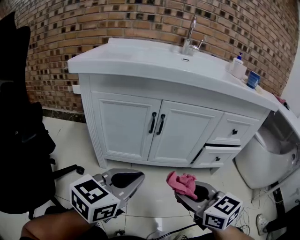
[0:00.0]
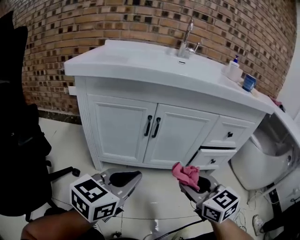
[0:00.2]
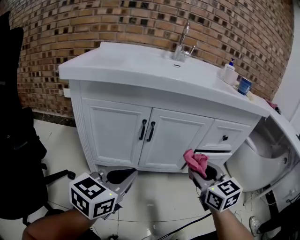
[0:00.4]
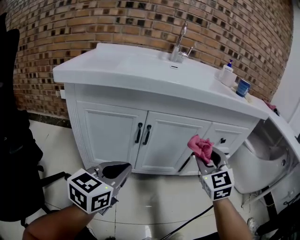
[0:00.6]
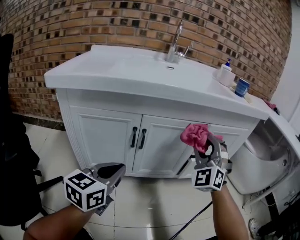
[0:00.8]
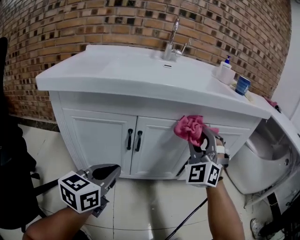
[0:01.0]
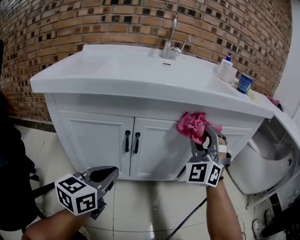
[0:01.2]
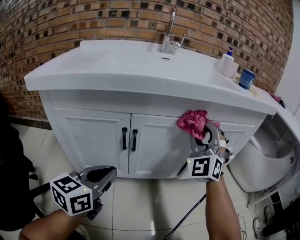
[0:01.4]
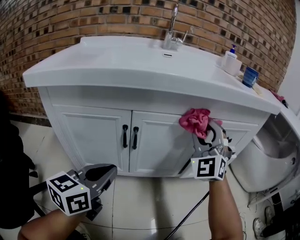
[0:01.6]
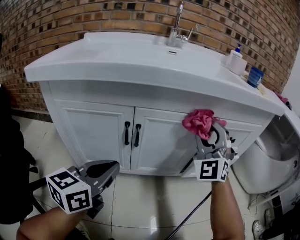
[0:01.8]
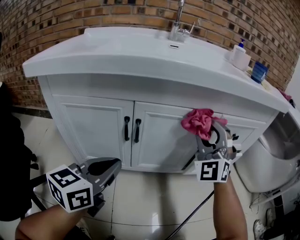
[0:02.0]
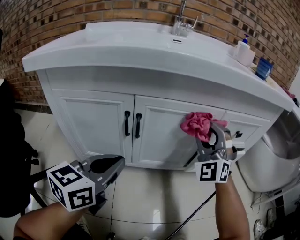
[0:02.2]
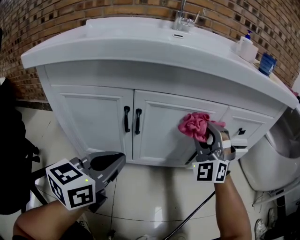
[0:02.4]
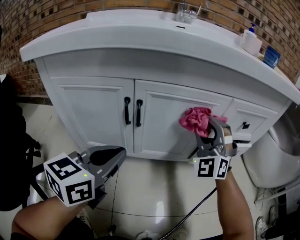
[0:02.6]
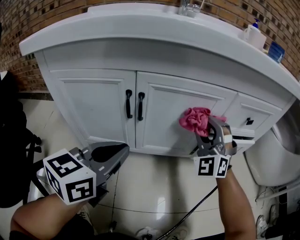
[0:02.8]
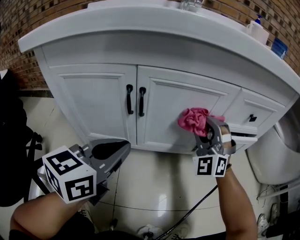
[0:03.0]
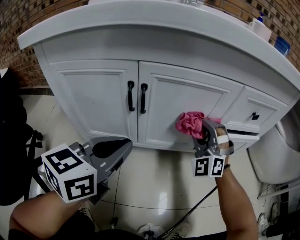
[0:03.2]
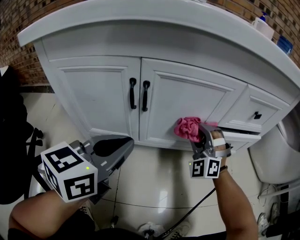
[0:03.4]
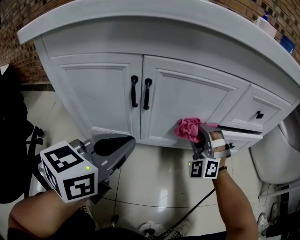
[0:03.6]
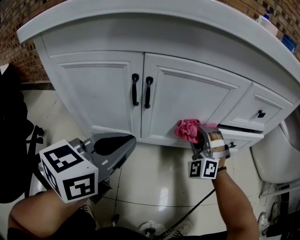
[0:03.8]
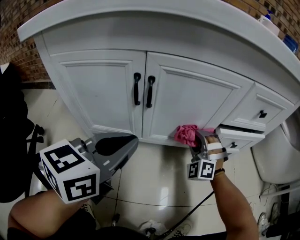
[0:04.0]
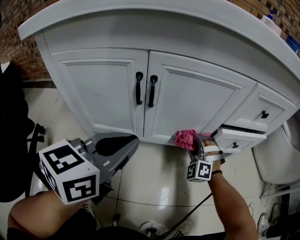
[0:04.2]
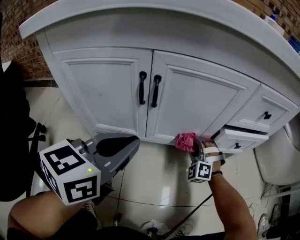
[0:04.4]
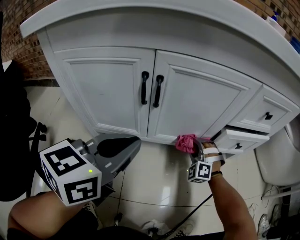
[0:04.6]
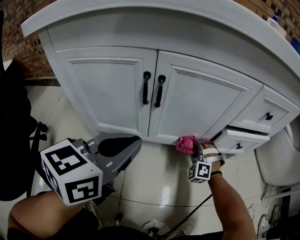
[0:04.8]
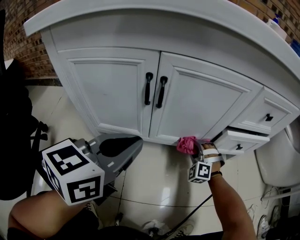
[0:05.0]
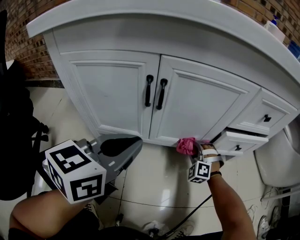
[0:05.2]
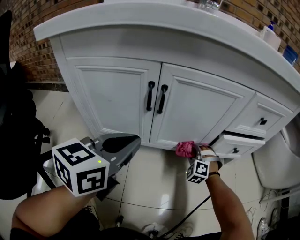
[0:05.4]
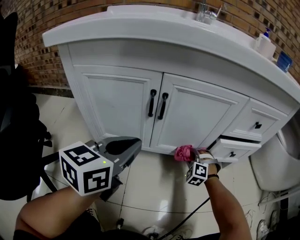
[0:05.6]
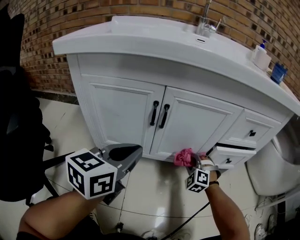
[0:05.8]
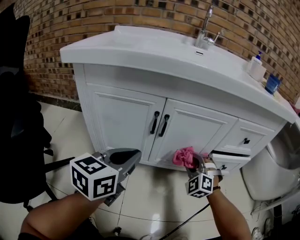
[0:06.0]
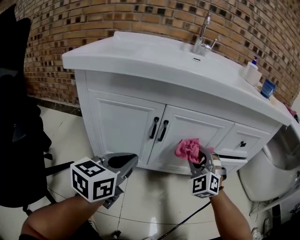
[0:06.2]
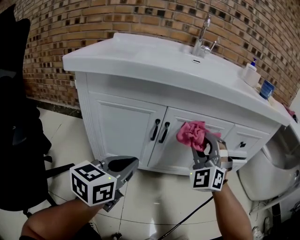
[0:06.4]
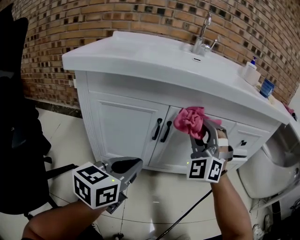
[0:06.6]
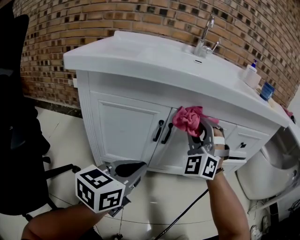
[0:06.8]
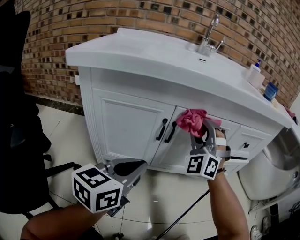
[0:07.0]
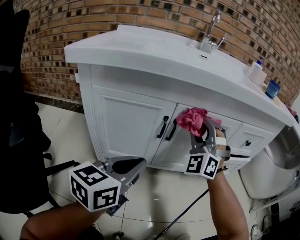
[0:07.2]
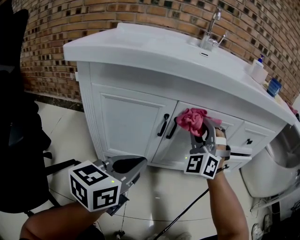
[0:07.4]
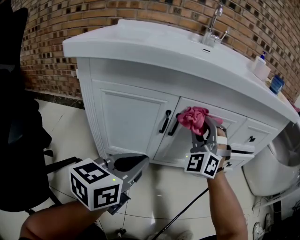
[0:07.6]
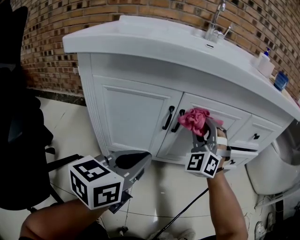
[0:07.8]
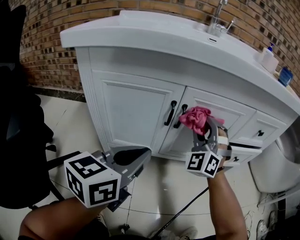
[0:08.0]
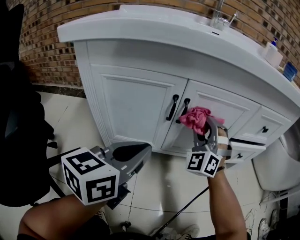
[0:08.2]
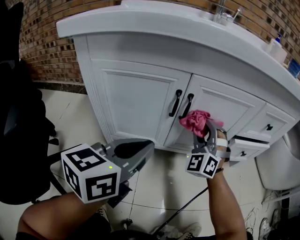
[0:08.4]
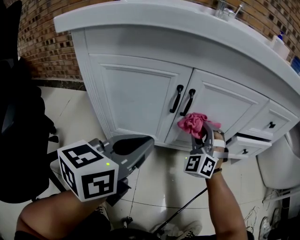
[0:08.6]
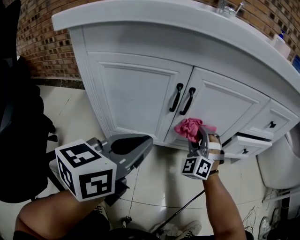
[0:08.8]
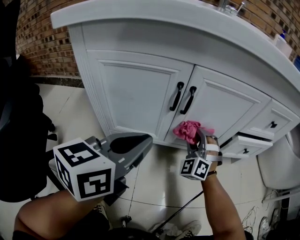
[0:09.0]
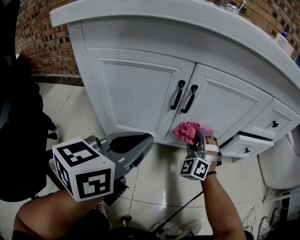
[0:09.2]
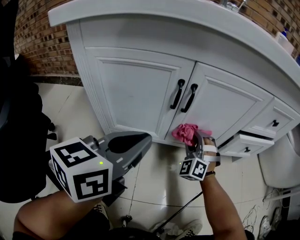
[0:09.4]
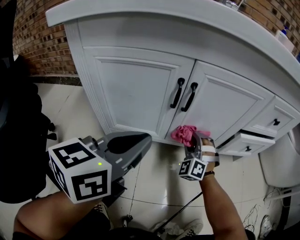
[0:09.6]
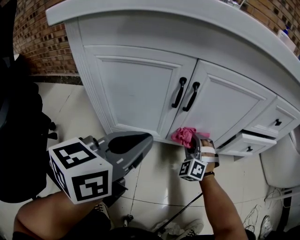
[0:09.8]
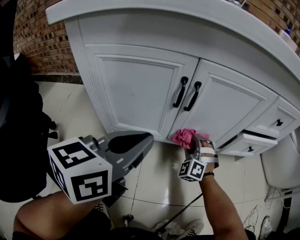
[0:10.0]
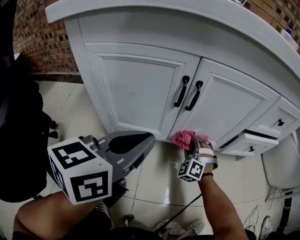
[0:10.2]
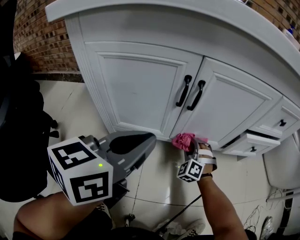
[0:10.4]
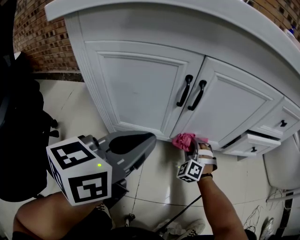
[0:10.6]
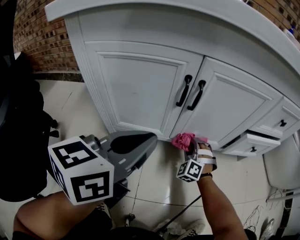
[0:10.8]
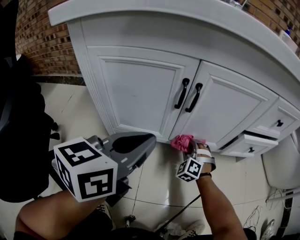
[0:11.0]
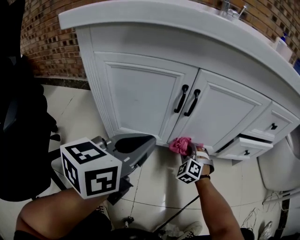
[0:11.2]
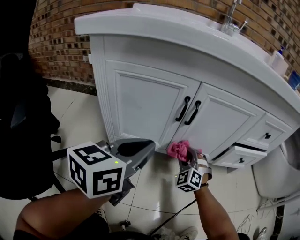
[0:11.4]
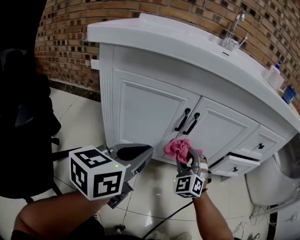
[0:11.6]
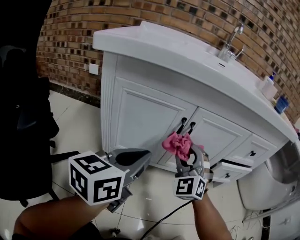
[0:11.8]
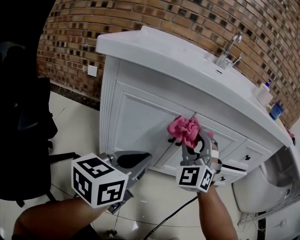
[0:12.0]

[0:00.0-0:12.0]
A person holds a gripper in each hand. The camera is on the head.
0:00.0 to 0:01.6: The left gripper travels forward by some 15 cm. The right gripper travels forward by about 30 cm, and rotates around the line of its fingers by some 60 degrees, counterclockwise from behind.
0:01.6 to 0:03.0: The right gripper goes about 15 cm downward.
0:03.0 to 0:04.4: The right gripper travels downward by approximately 20 cm, and swivels some 30 degrees.
0:04.4 to 0:06.0: The right gripper is displaced upward by roughly 15 cm. The left gripper ends up approximately 5 cm from where it was.
0:06.0 to 0:07.6: The right gripper moves upward and to the left, some 20 cm, and swivels some 30 degrees.
0:07.6 to 0:09.0: The right gripper travels downward by approximately 20 cm.
0:09.0 to 0:10.4: The right gripper is displaced downward by some 15 cm.
0:10.4 to 0:12.0: The right gripper travels upward by some 35 cm, and tilts its fingers approximately 30 degrees upward; the left gripper shifts by approximately 5 cm.

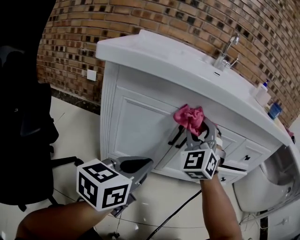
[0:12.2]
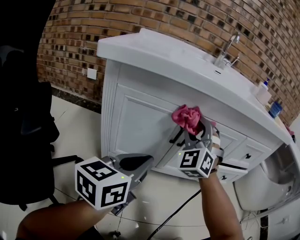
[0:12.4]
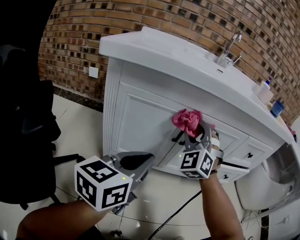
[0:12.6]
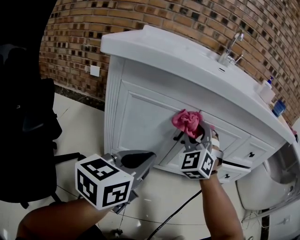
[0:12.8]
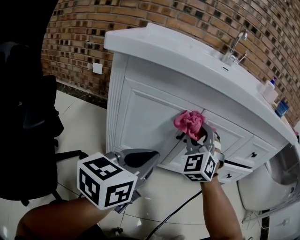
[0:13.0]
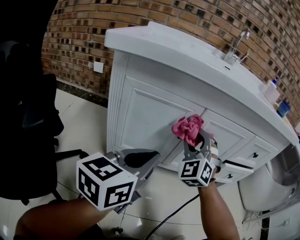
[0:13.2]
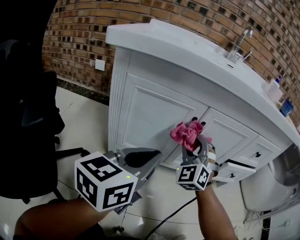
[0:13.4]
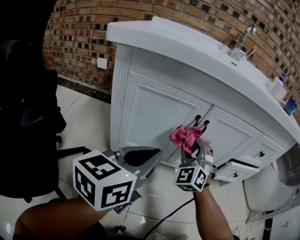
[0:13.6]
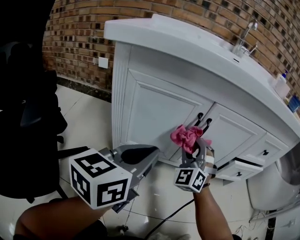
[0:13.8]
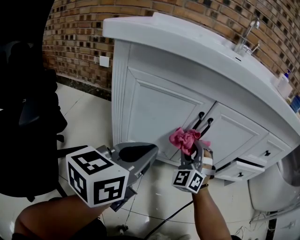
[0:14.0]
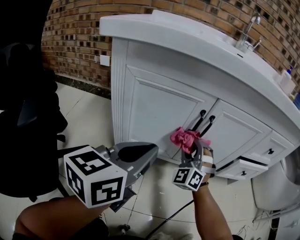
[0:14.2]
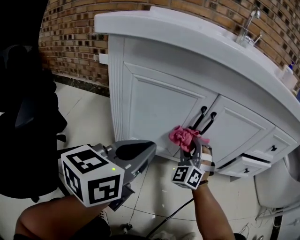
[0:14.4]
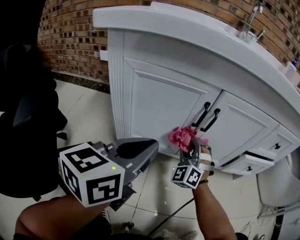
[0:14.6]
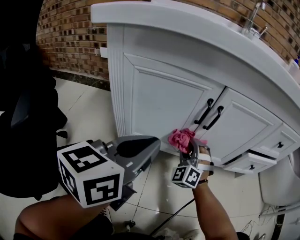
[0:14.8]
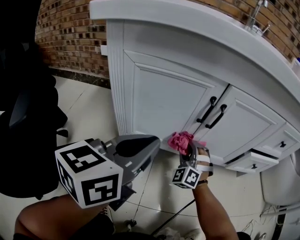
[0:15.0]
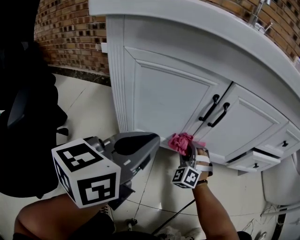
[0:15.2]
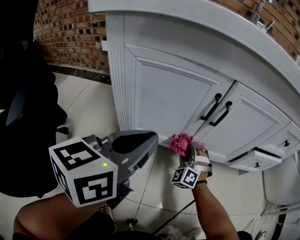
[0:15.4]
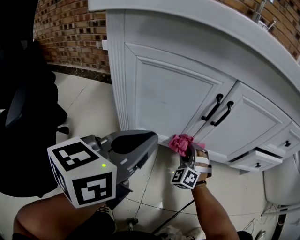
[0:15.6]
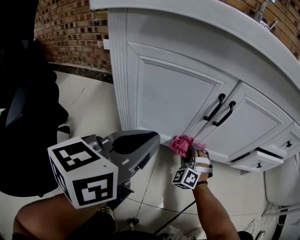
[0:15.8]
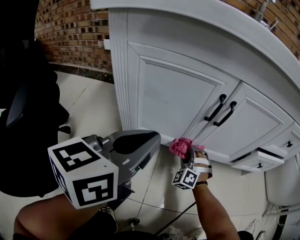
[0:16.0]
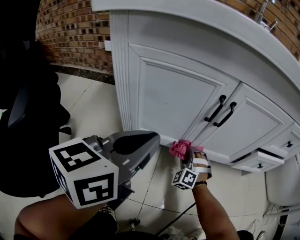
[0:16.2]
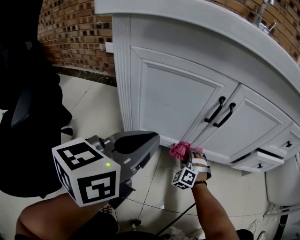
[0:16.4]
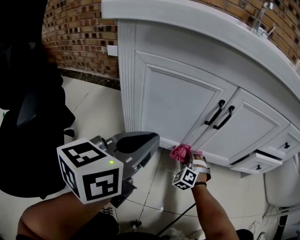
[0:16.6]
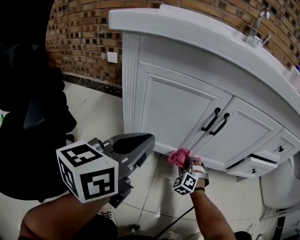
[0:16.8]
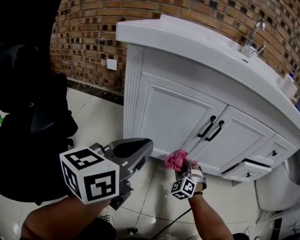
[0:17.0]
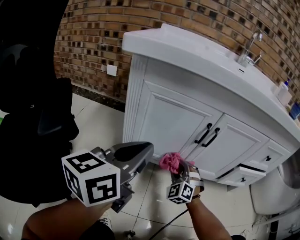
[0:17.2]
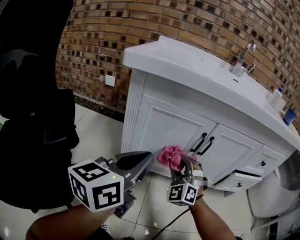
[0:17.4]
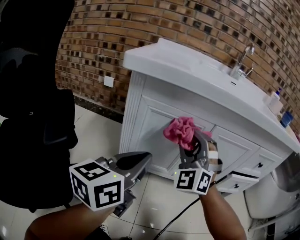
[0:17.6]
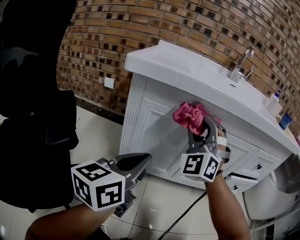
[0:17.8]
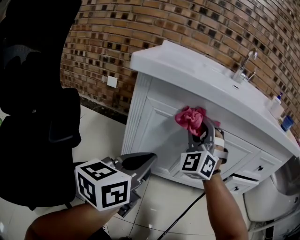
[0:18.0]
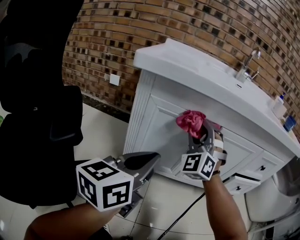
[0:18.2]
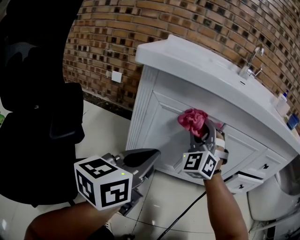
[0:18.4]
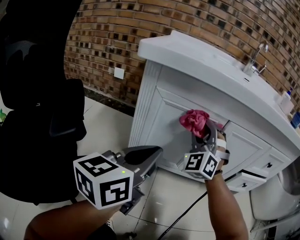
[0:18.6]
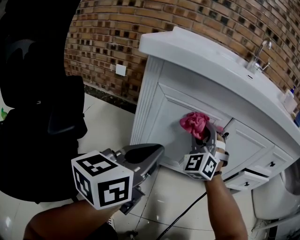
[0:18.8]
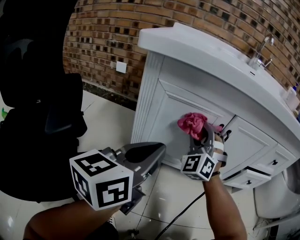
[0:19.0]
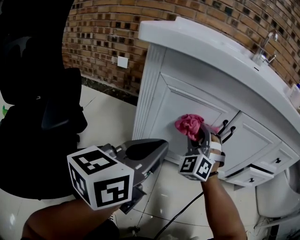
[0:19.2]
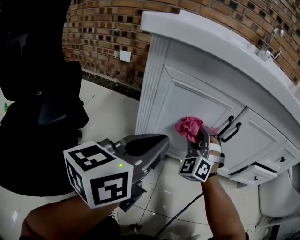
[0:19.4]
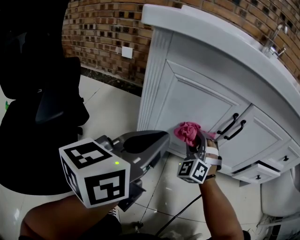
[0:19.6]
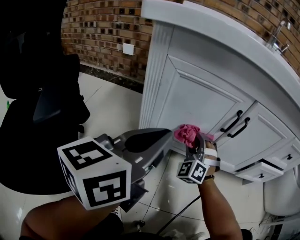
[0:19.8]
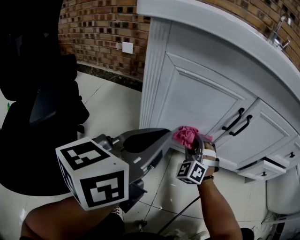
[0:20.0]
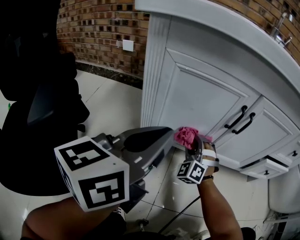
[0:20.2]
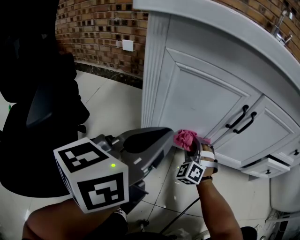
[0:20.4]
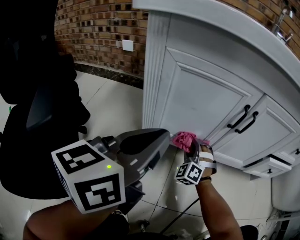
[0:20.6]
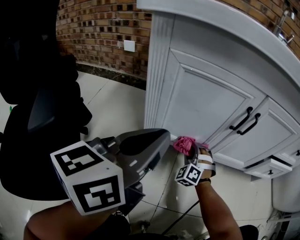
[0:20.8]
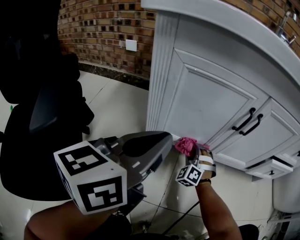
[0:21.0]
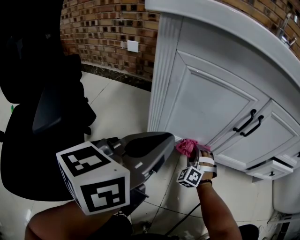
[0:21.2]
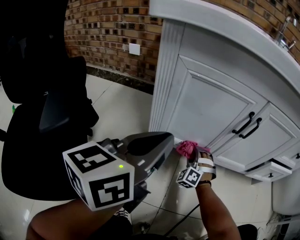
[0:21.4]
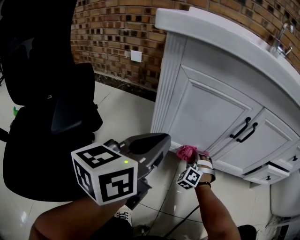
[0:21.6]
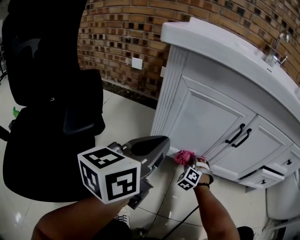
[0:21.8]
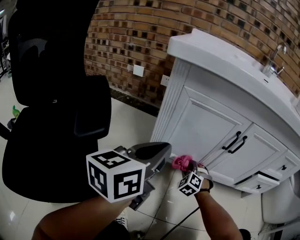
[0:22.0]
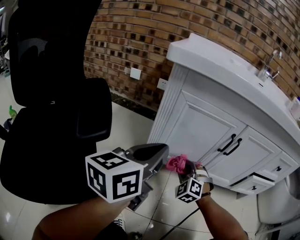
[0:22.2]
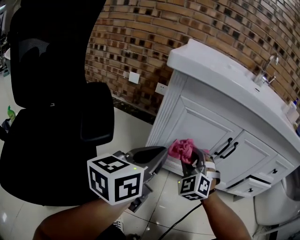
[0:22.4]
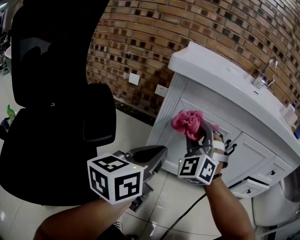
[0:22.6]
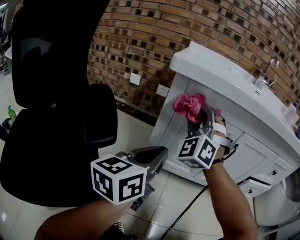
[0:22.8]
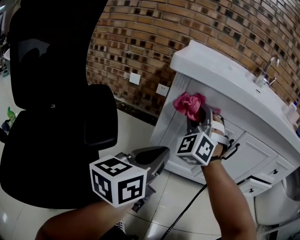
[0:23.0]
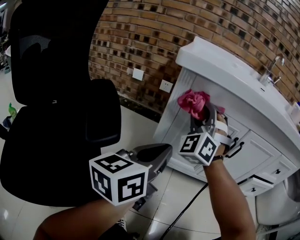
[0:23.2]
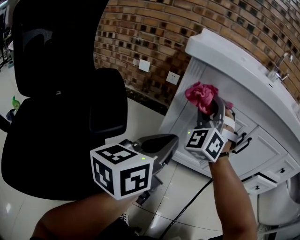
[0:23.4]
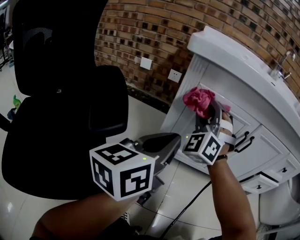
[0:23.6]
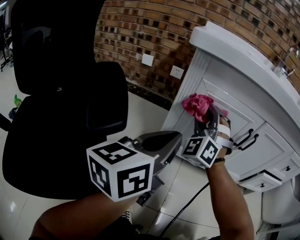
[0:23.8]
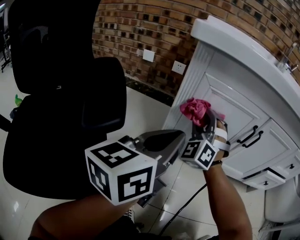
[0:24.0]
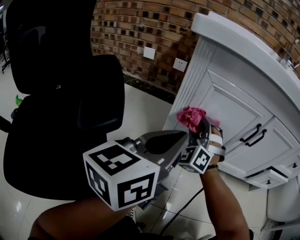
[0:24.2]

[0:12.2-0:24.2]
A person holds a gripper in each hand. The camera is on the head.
0:12.2 to 0:13.8: The right gripper heads downward, covering about 15 cm.
0:13.8 to 0:15.2: The right gripper goes about 20 cm downward.
0:15.2 to 0:16.6: The right gripper is displaced downward by about 10 cm.
0:16.6 to 0:18.2: The right gripper goes approximately 40 cm upward, and tilts its fingers about 40 degrees upward; the left gripper heads upward, covering approximately 5 cm.
0:18.2 to 0:19.8: The right gripper shifts roughly 25 cm downward.
0:19.8 to 0:21.2: The right gripper moves downward, some 15 cm.
0:21.2 to 0:22.6: The left gripper ends up roughly 5 cm from where it was. The right gripper heads upward, covering about 35 cm, and turns by roughly 30 degrees.
0:22.6 to 0:24.2: The right gripper moves downward, approximately 15 cm.
